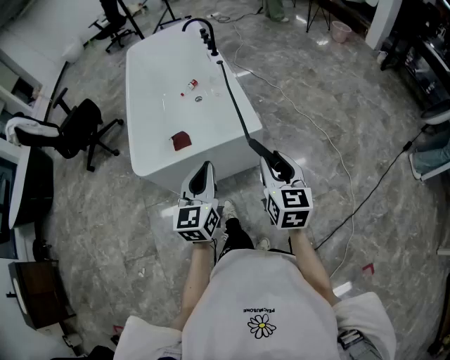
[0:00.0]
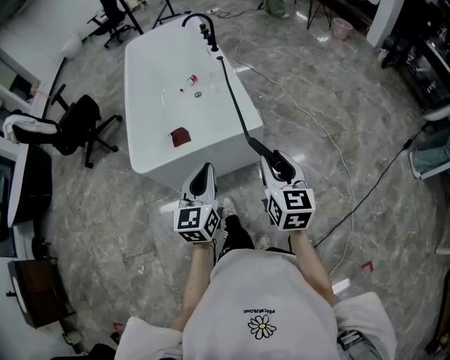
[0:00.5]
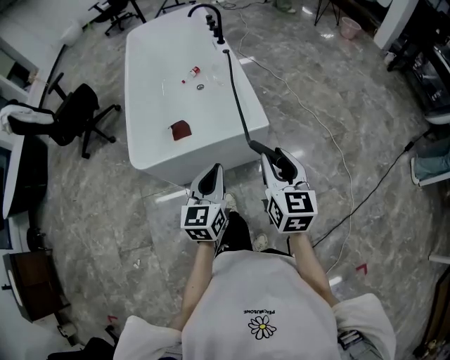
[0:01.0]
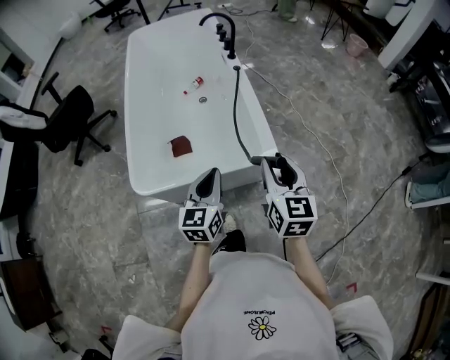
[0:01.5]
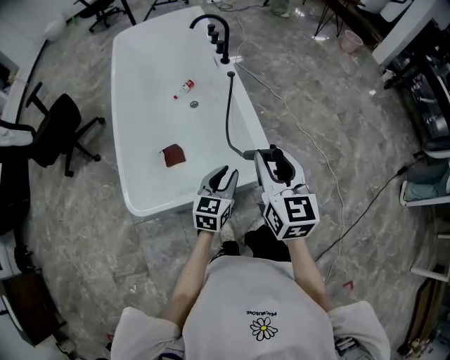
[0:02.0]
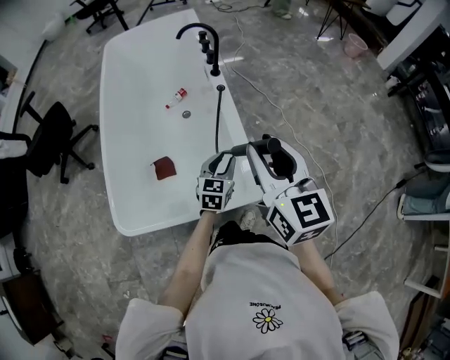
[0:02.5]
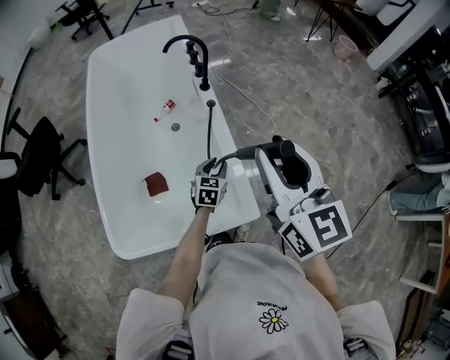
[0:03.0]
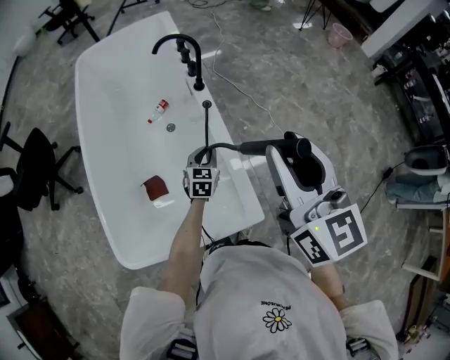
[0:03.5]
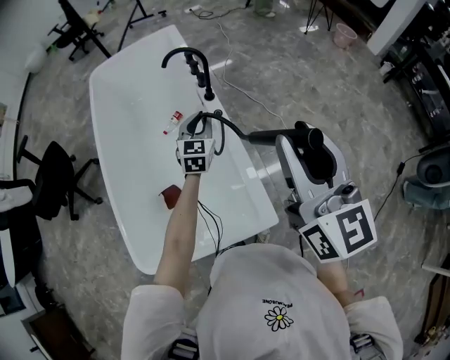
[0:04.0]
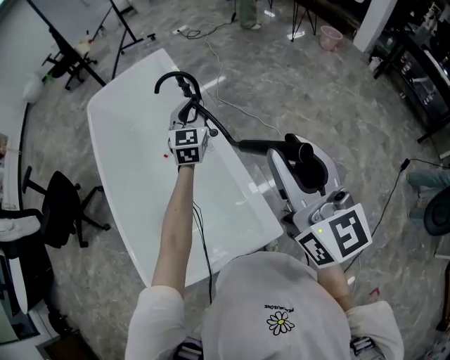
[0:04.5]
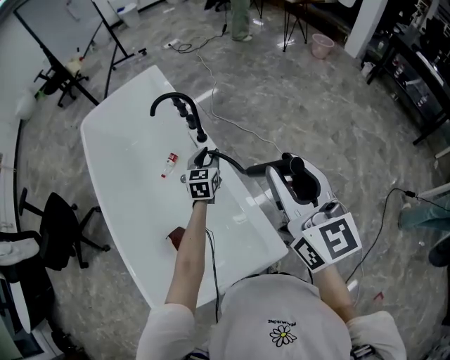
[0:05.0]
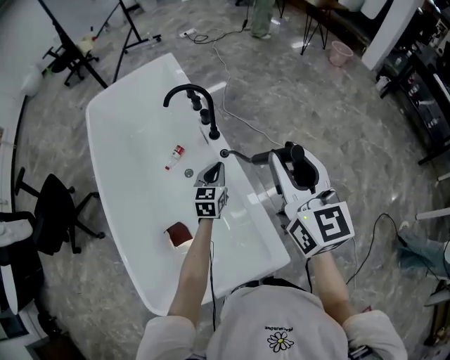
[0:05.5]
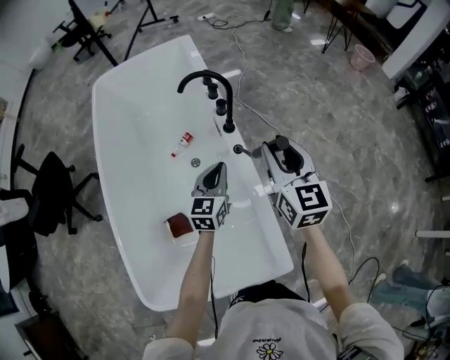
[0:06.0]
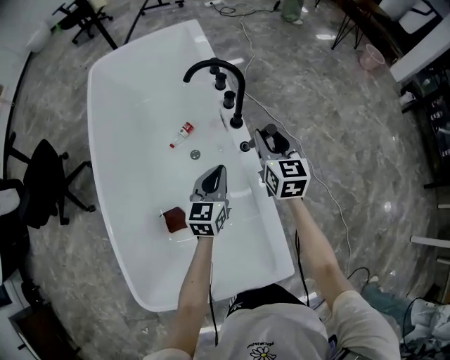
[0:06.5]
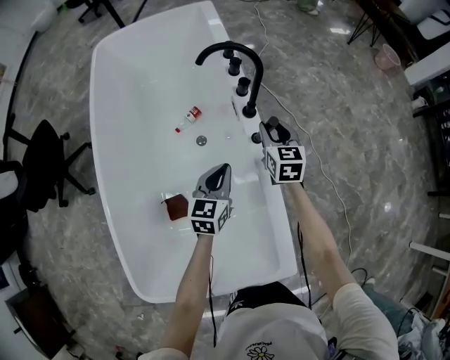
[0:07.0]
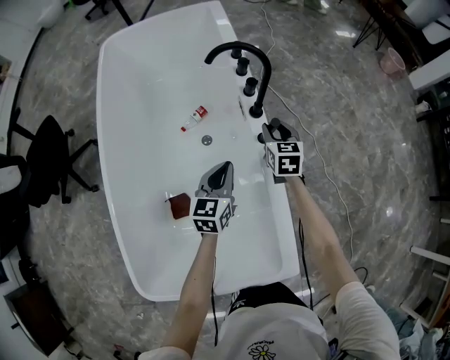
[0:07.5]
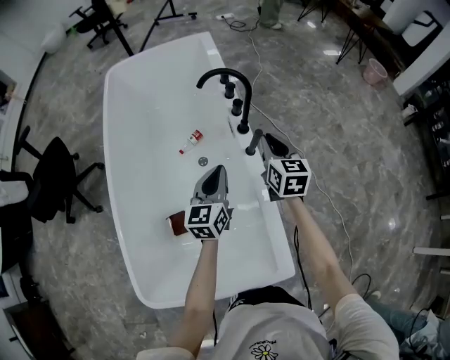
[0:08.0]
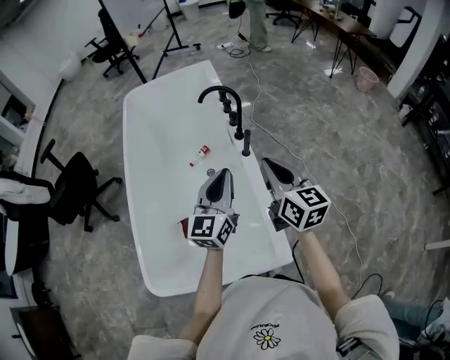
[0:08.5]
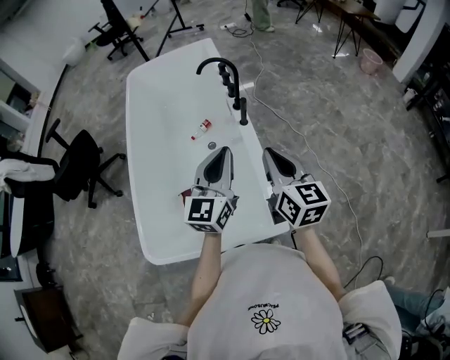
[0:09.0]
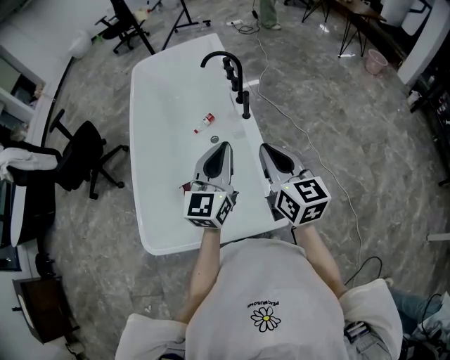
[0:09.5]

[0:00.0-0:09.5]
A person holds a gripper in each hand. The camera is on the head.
0:00.0 to 0:02.0: The right gripper goes approximately 30 cm forward and to the left; the left gripper moves forward, about 30 cm, turns by roughly 20 degrees, and opens its fingers.
0:02.0 to 0:04.0: The left gripper moves forward, about 40 cm, and swivels roughly 20 degrees. The right gripper shifts some 30 cm forward and upward.
0:04.0 to 0:05.5: The left gripper heads downward, covering roughly 10 cm; the right gripper moves forward and downward, about 15 cm.
0:05.5 to 0:07.5: The left gripper moves to the left, about 10 cm; the right gripper shifts roughly 40 cm downward and forward, and tilts its fingers approximately 30 degrees downward.
0:07.5 to 0:09.5: The right gripper heads backward and upward, covering roughly 50 cm, rotates some 30 degrees, and closes its fingers, while the left gripper heads upward and backward, covering roughly 40 cm, and rotates about 30 degrees.

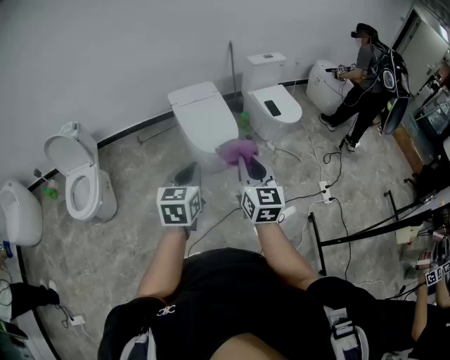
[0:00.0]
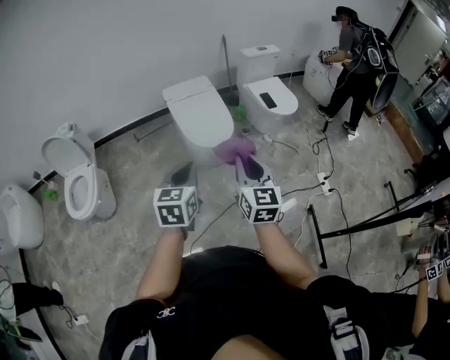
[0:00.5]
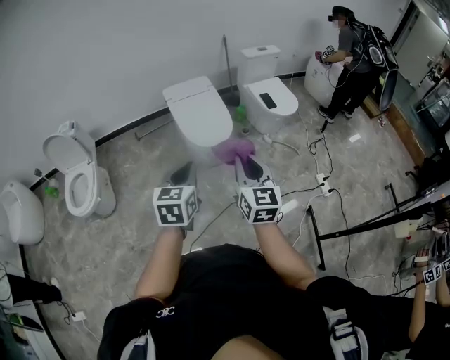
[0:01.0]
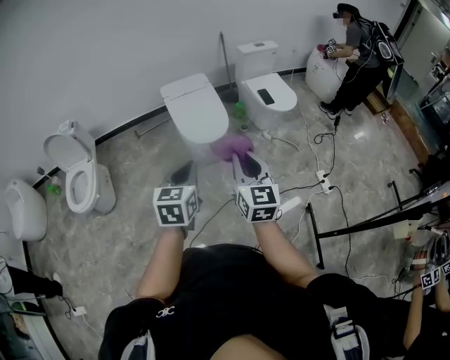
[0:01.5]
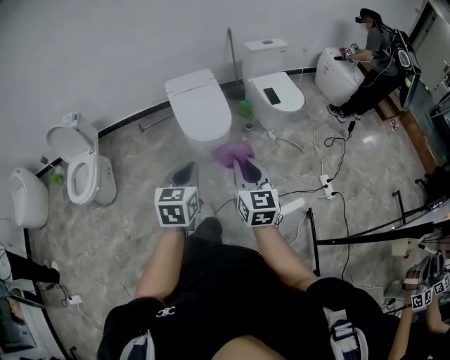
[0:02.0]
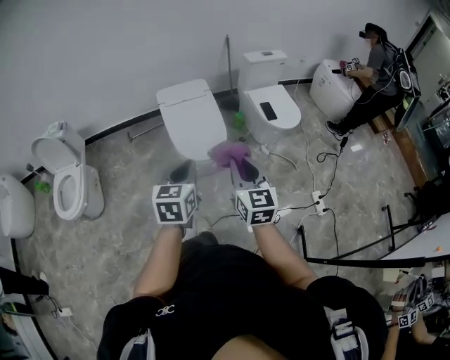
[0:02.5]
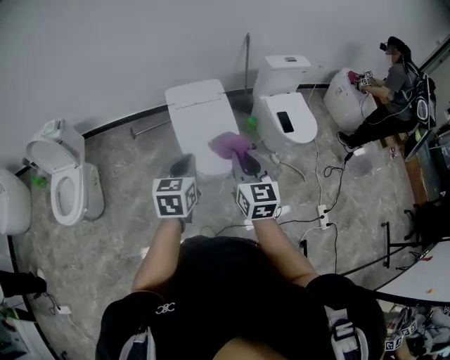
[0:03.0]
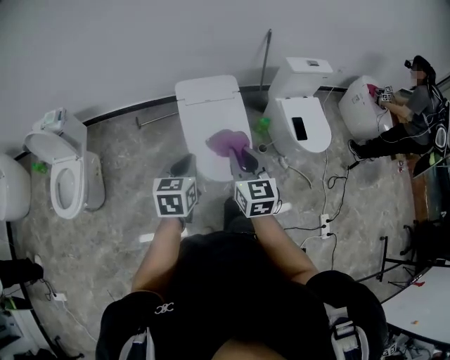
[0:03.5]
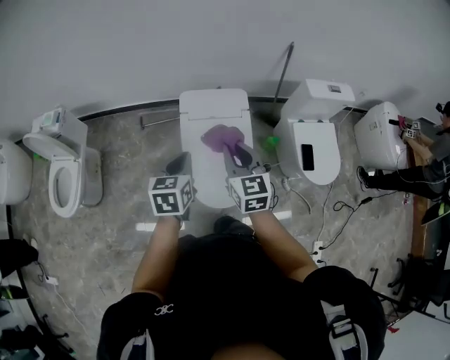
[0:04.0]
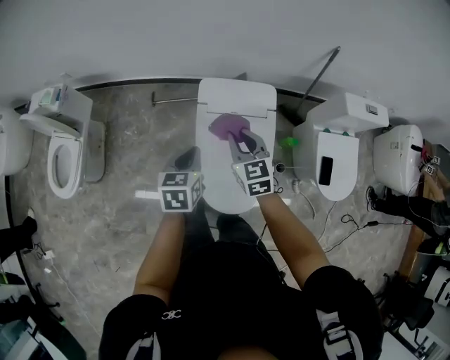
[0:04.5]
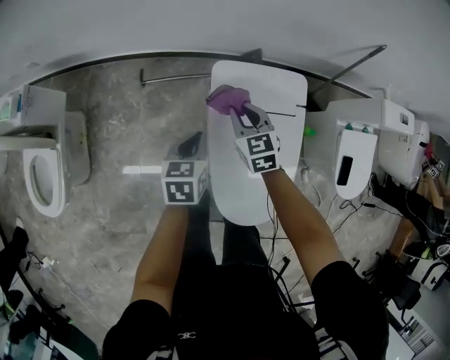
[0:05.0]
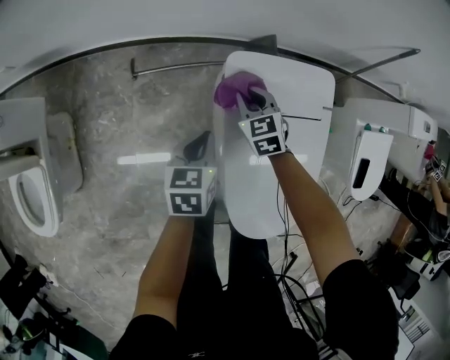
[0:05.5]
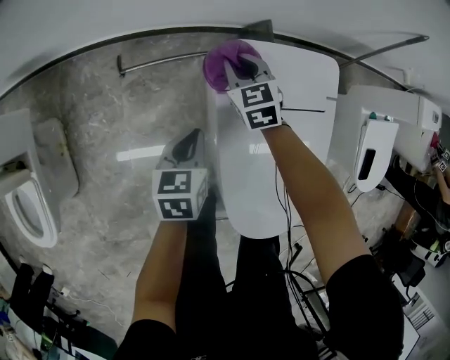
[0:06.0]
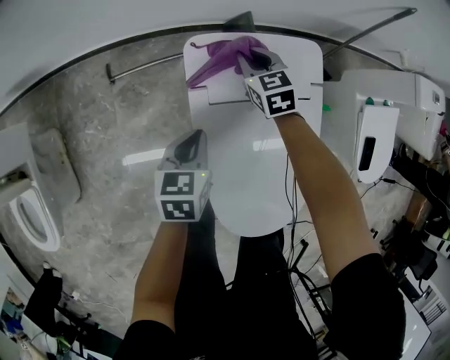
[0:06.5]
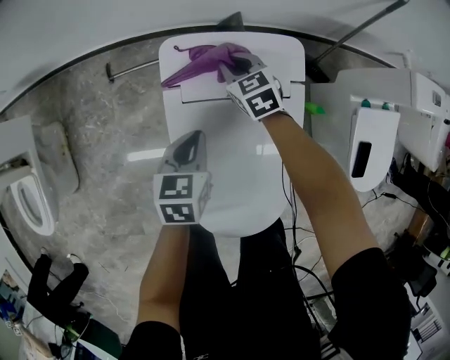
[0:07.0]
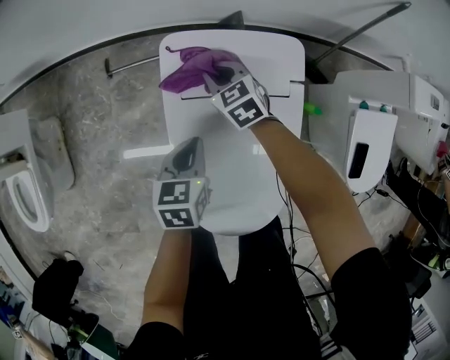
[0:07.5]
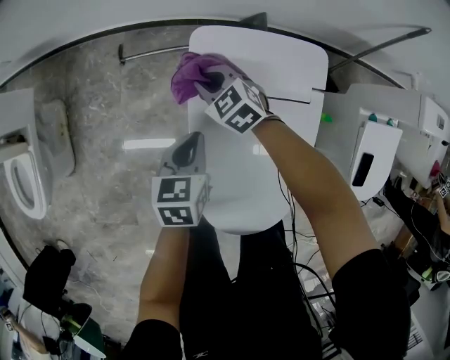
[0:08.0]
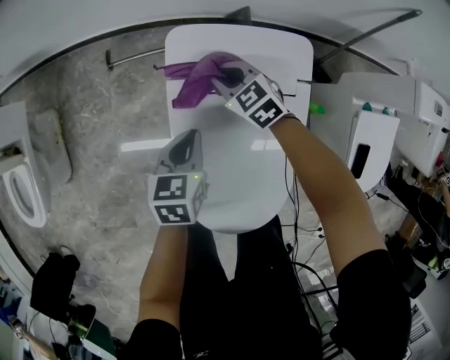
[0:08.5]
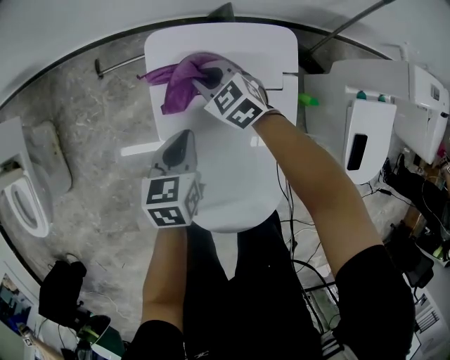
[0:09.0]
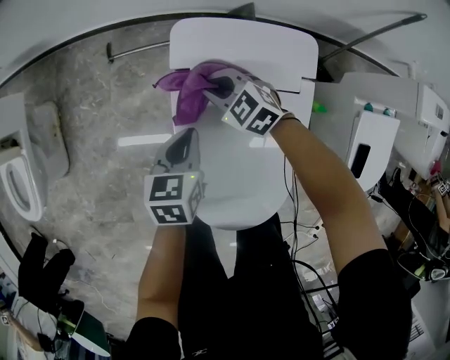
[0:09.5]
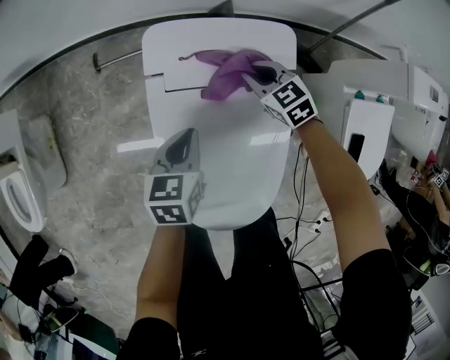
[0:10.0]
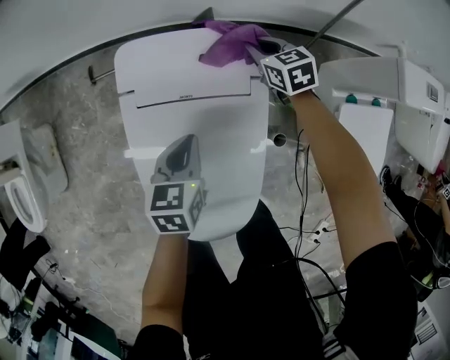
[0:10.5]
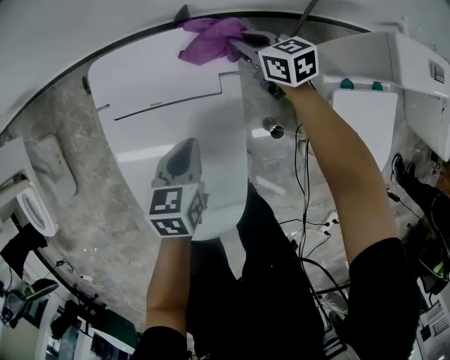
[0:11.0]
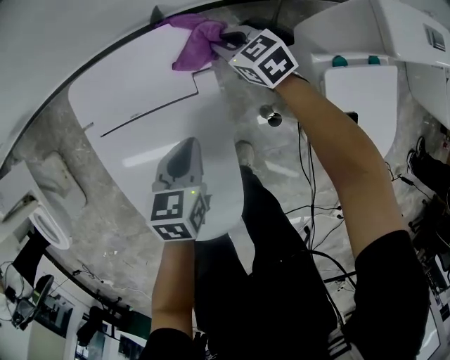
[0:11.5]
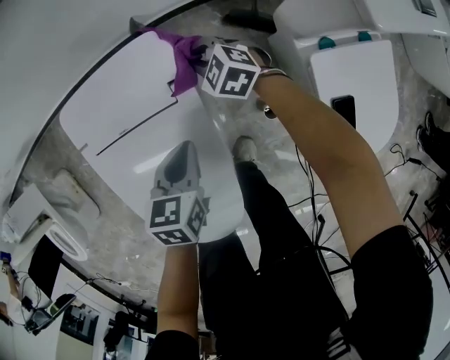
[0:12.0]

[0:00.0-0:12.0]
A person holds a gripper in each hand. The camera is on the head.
0:00.0 to 0:02.0: The grippers both shift to the right by approximately 15 cm.
0:02.0 to 0:04.0: Both grippers are carried forward, about 60 cm. The right gripper changes its angle by about 20 degrees, while the left gripper rotates roughly 20 degrees.
0:04.0 to 0:06.0: The left gripper travels downward and forward by approximately 50 cm. Meanwhile the right gripper moves downward, forward and to the left, about 70 cm, and changes its angle by roughly 30 degrees.
0:06.0 to 0:08.0: The left gripper heads to the right and backward, covering approximately 10 cm. Meanwhile the right gripper is displaced backward by some 10 cm, travels to the right and back again, roughly 15 cm each way, and rotates roughly 30 degrees.
0:08.0 to 0:10.0: The left gripper swings left and right, approximately 10 cm each way, with 2 reversals. Meanwhile the right gripper moves left and right over roughly 20 cm, changing direction 2 times.
0:10.0 to 0:12.0: The grippers both shift to the right by some 25 cm.

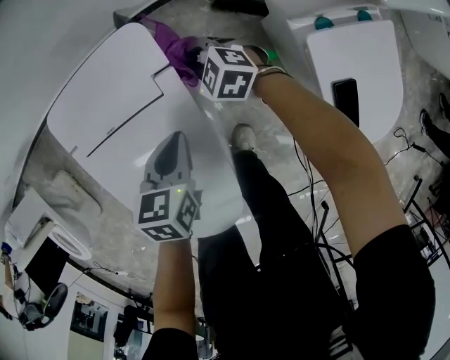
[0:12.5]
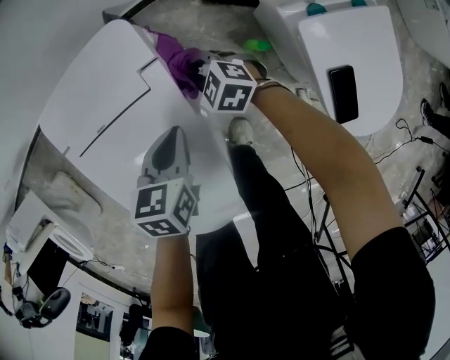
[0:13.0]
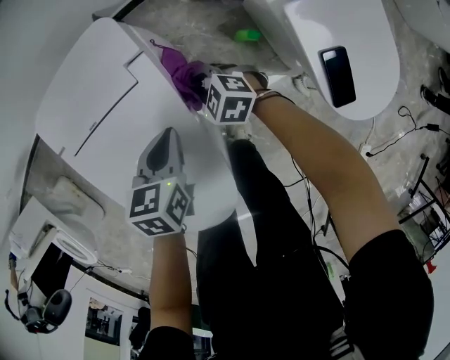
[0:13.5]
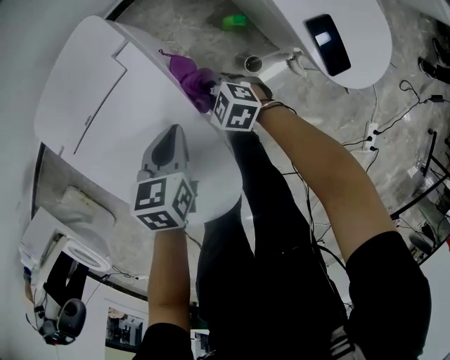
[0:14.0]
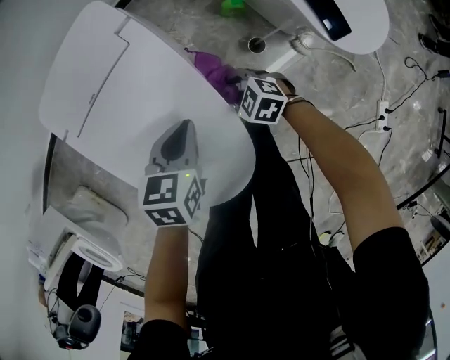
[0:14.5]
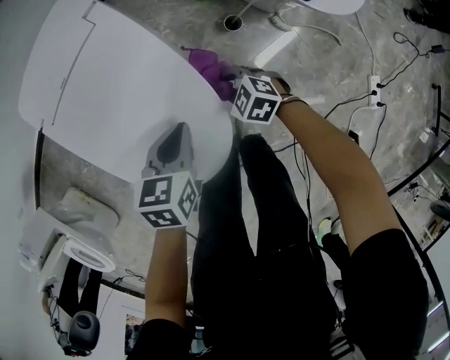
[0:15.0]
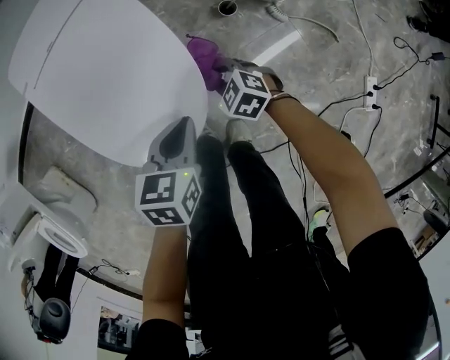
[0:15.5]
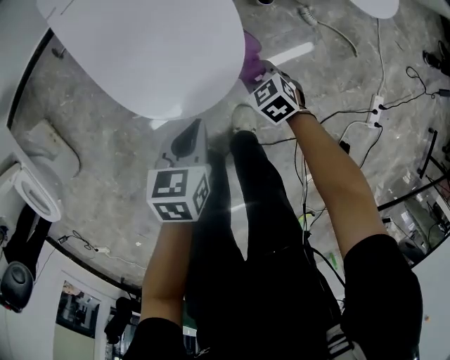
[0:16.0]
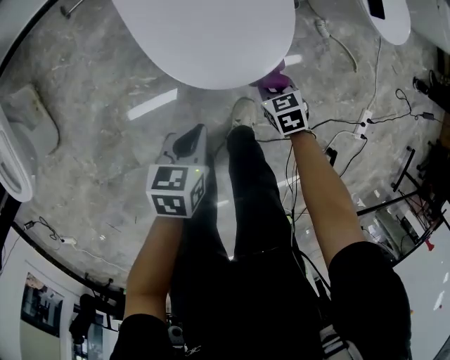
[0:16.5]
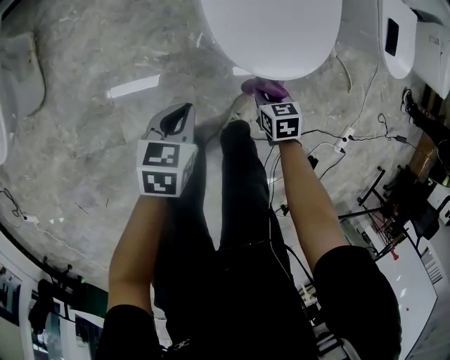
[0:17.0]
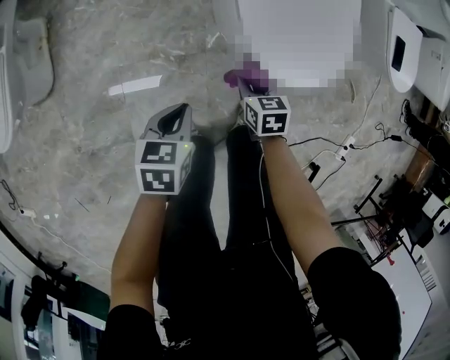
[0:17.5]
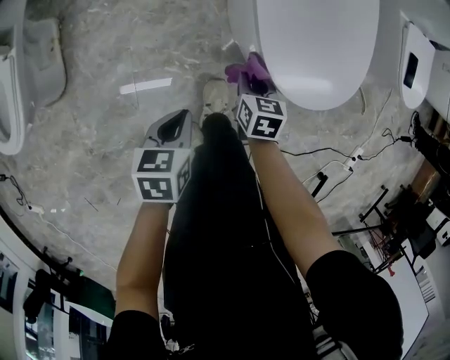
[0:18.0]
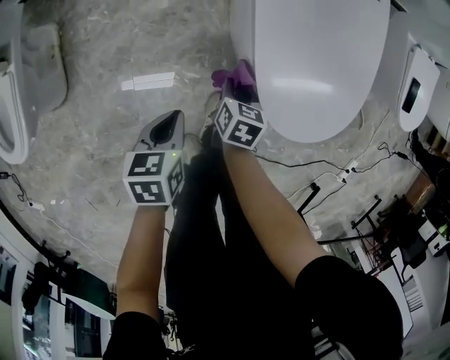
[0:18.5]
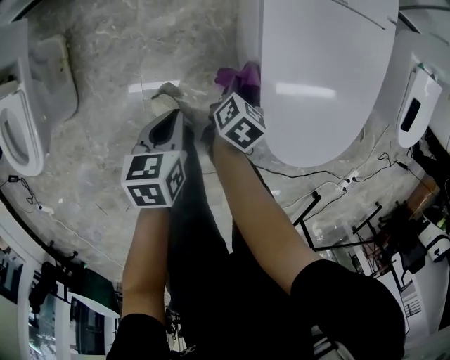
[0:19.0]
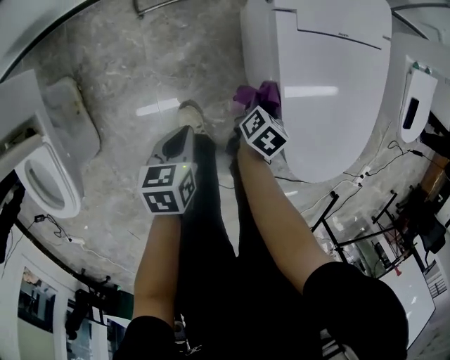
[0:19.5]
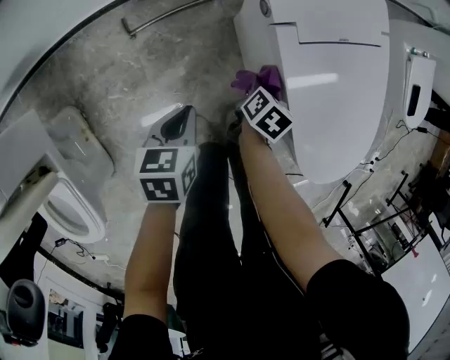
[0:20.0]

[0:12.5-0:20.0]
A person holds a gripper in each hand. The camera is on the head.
0:12.5 to 0:14.5: The left gripper shifts roughly 15 cm backward, and rotates approximately 20 degrees. Meanwhile the right gripper shifts some 30 cm backward, and rotates roughly 20 degrees.
0:14.5 to 0:16.5: The left gripper is displaced backward and to the left by approximately 40 cm, and turns by approximately 20 degrees, while the right gripper travels backward by roughly 30 cm, and changes its angle by roughly 30 degrees.
0:16.5 to 0:18.0: Both grippers travel together to the left, some 25 cm. The right gripper rotates roughly 20 degrees.
0:18.0 to 0:20.0: The left gripper ends up roughly 40 cm from where it was; the right gripper moves some 35 cm, and rotates approximately 50 degrees.
